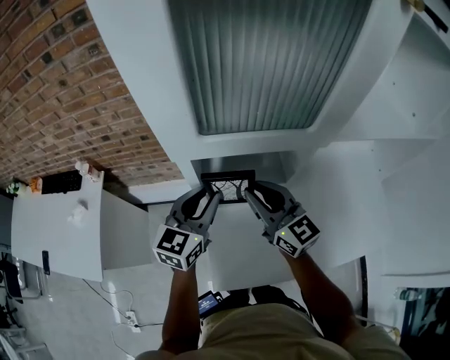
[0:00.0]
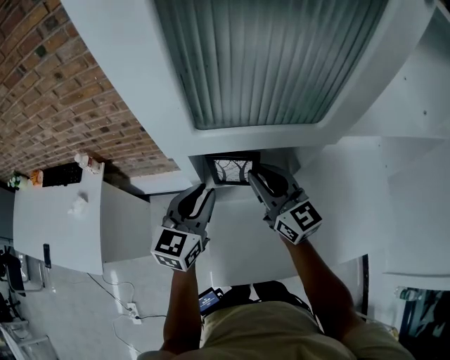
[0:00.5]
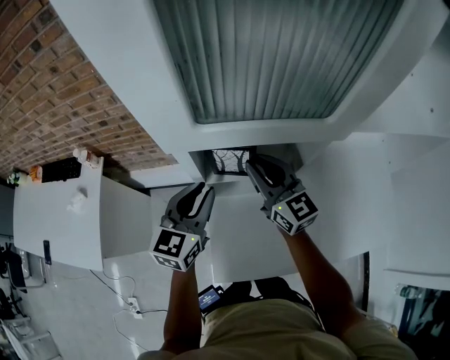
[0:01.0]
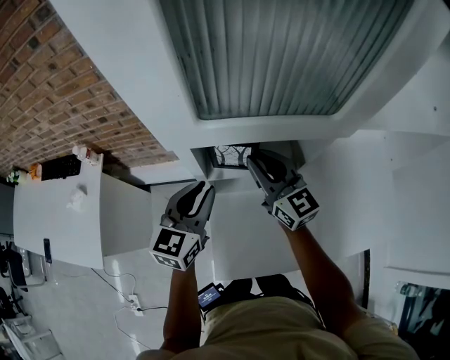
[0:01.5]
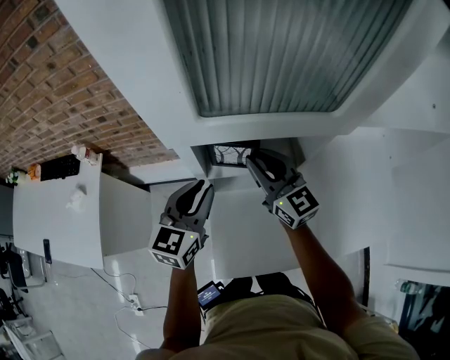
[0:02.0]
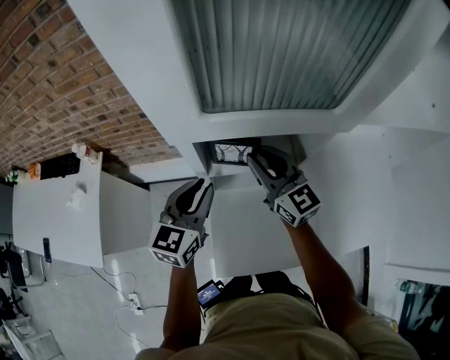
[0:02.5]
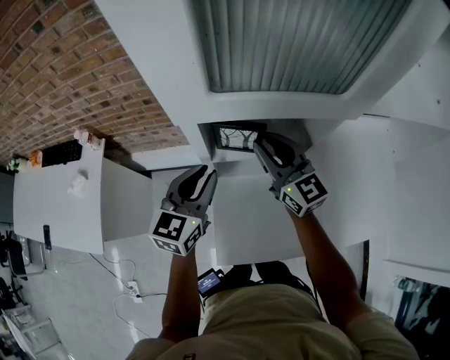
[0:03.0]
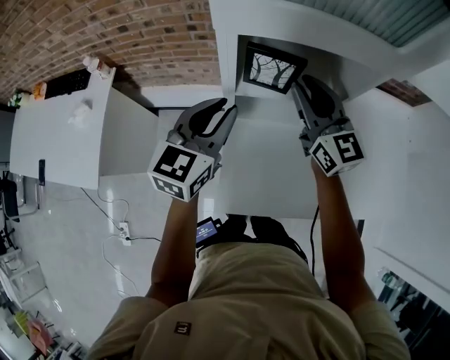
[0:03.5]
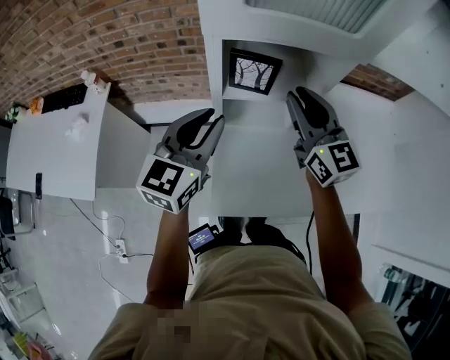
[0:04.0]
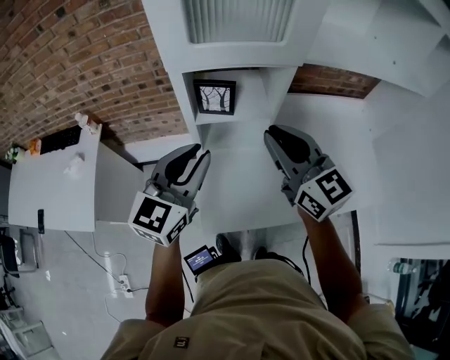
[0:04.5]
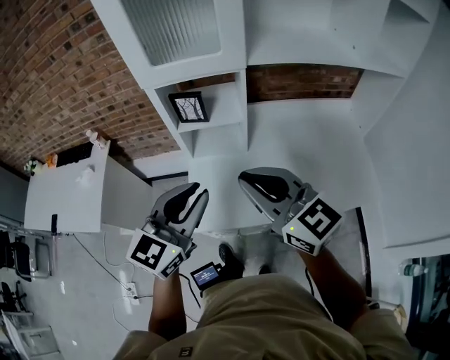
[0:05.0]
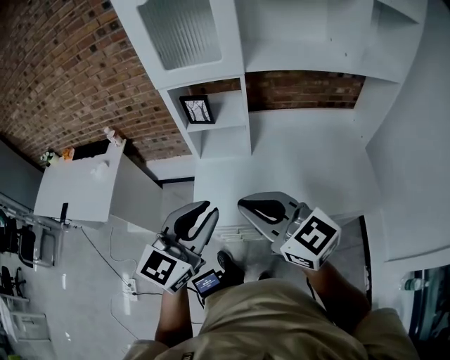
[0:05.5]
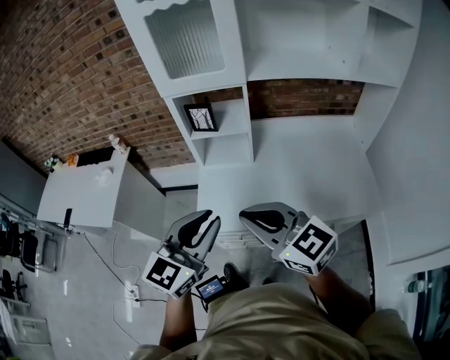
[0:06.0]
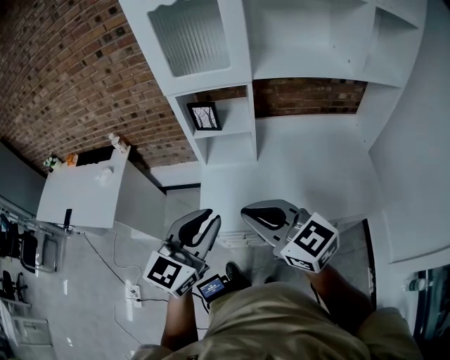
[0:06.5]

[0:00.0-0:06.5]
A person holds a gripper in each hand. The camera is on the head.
0:00.0 to 0:02.0: The right gripper is displaced forward by approximately 5 cm.
0:02.0 to 0:04.5: Both grippers move backward and upward, about 20 cm.
0:04.5 to 0:06.5: The grippers both shift backward by approximately 25 cm. The right gripper rotates roughly 20 degrees.

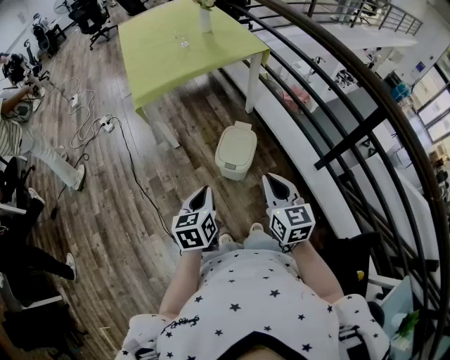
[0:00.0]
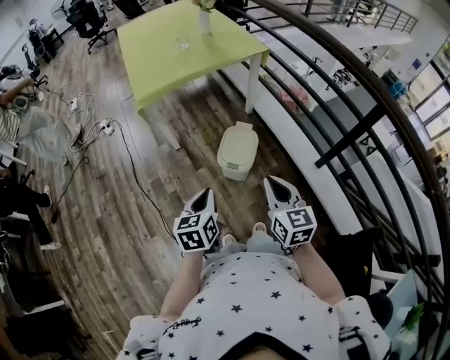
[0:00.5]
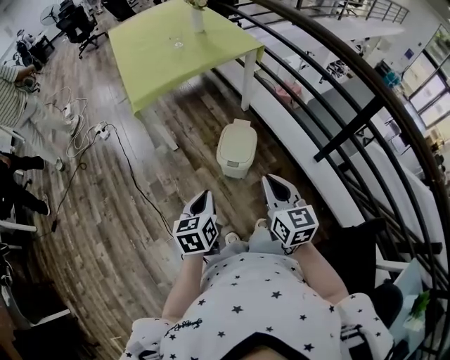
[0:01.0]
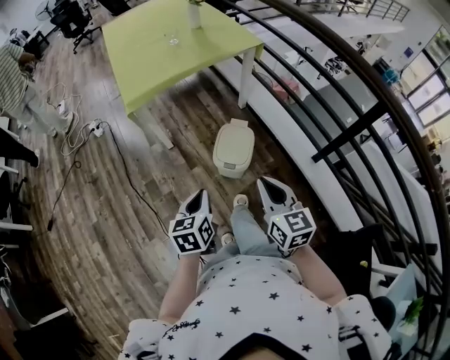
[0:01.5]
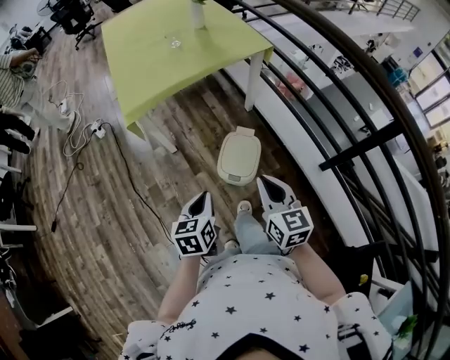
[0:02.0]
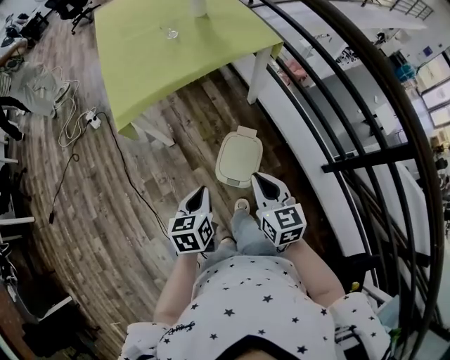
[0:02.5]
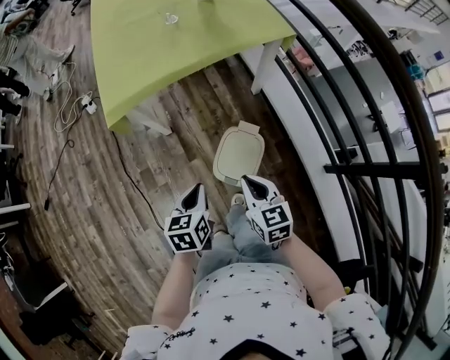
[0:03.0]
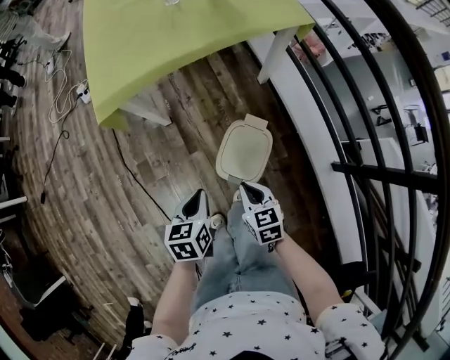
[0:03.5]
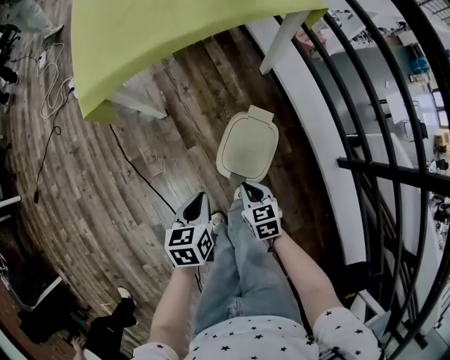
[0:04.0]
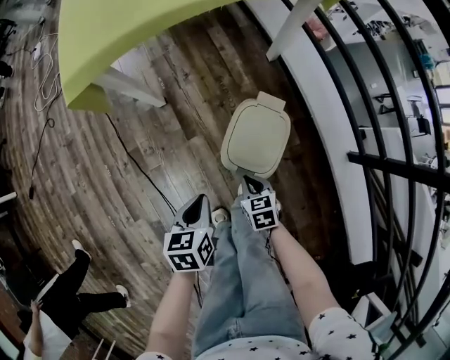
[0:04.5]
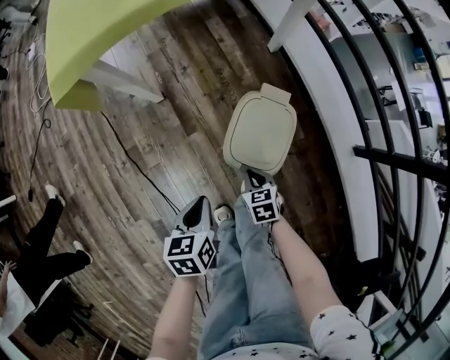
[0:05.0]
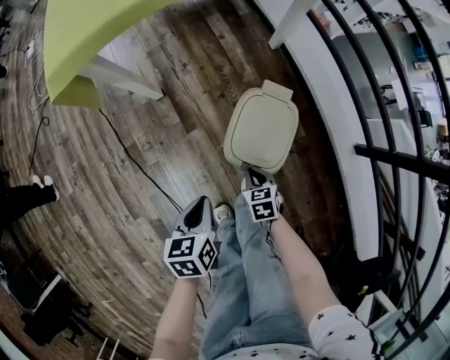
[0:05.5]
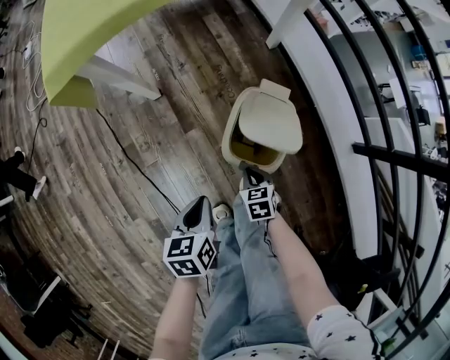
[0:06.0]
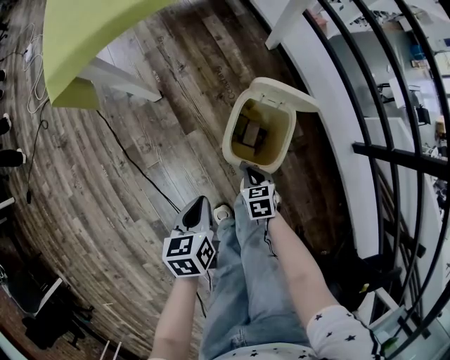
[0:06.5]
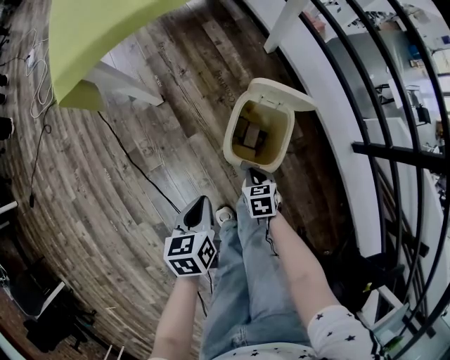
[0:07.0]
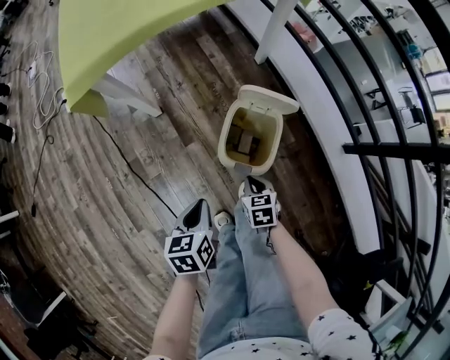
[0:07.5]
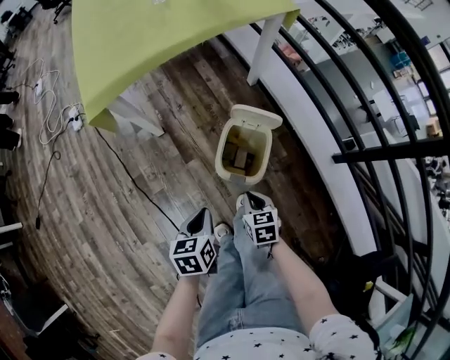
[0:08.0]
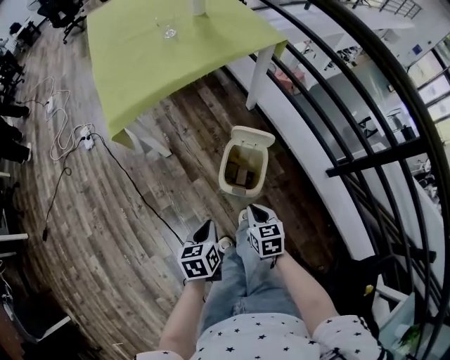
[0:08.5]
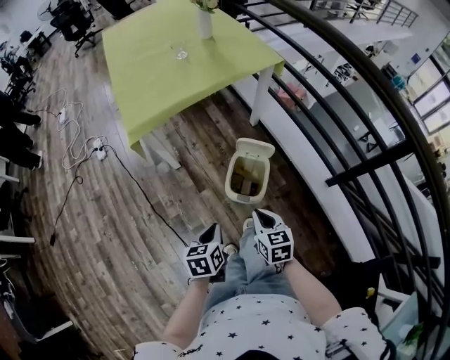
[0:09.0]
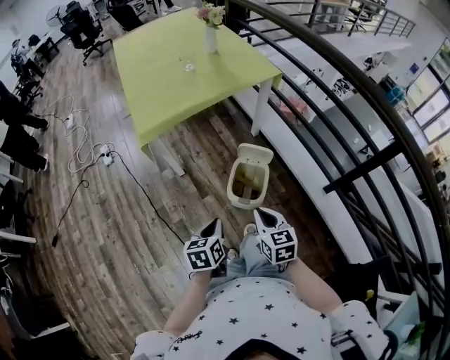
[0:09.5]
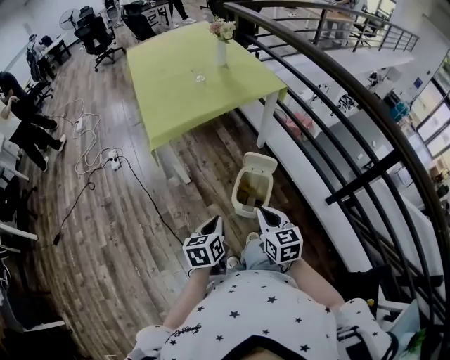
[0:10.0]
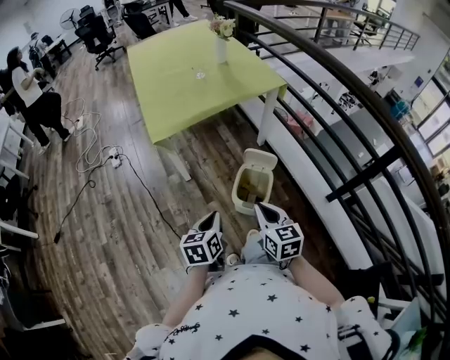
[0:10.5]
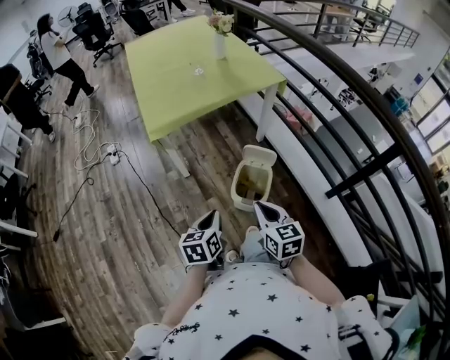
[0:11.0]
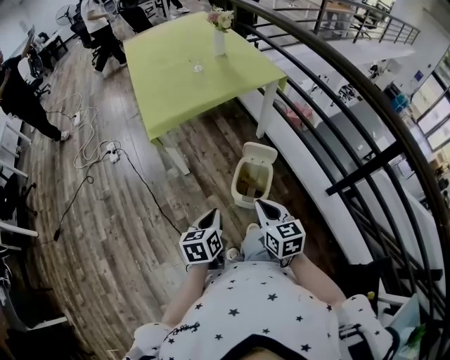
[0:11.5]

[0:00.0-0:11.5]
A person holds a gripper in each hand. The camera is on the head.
0:00.0 to 0:02.0: Both grippers travel together forward, some 10 cm.
0:02.0 to 0:04.0: The right gripper goes about 35 cm downward, and tilts its fingers roughly 30 degrees downward; the left gripper travels downward and forward by about 25 cm.
0:04.0 to 0:06.0: The left gripper goes approximately 10 cm downward. The right gripper moves downward, roughly 20 cm.
0:06.0 to 0:07.5: The two grippers go some 10 cm upward.
0:07.5 to 0:09.5: The left gripper heads upward, covering approximately 25 cm, while the right gripper moves upward, some 40 cm, and turns by approximately 20 degrees.
0:09.5 to 0:11.5: The right gripper shifts by some 5 cm.

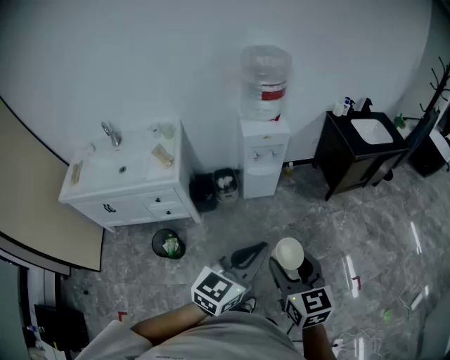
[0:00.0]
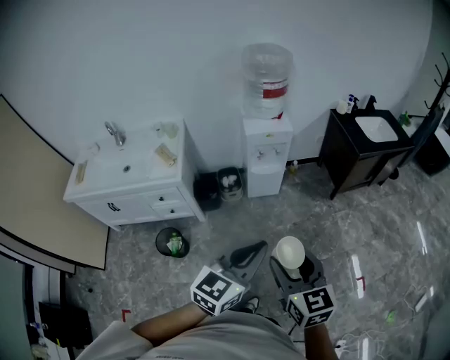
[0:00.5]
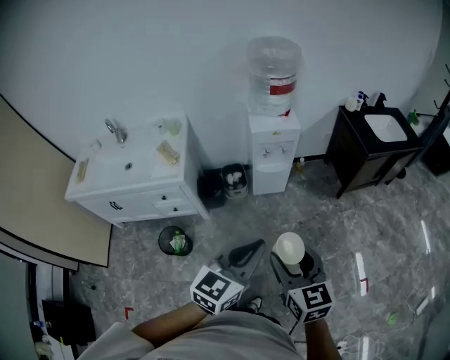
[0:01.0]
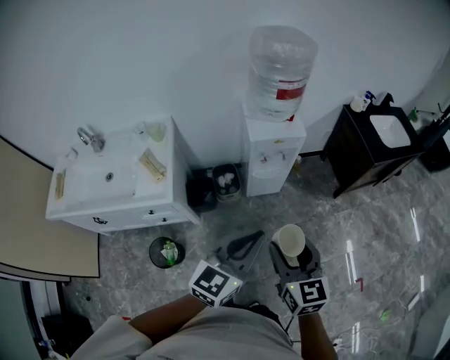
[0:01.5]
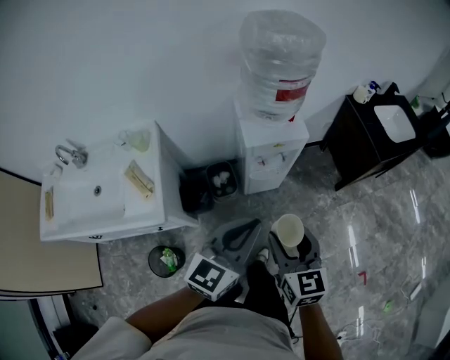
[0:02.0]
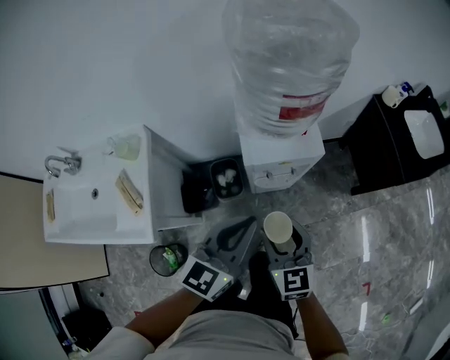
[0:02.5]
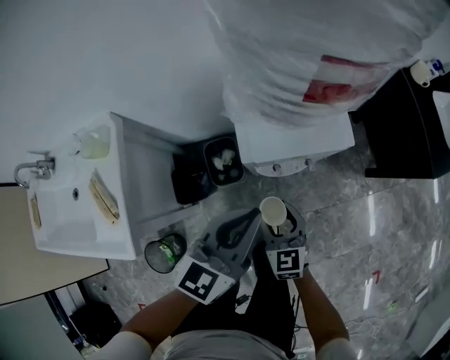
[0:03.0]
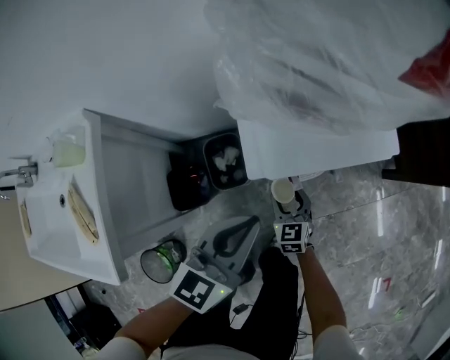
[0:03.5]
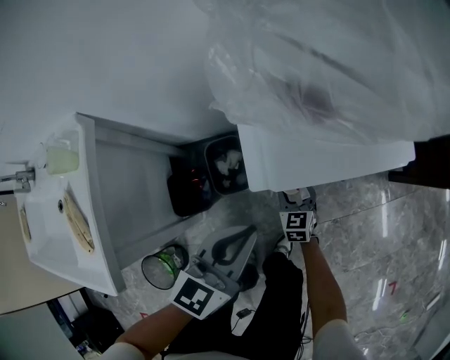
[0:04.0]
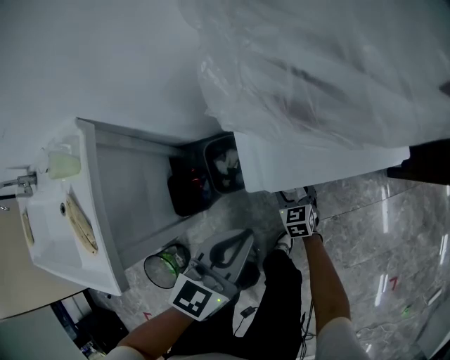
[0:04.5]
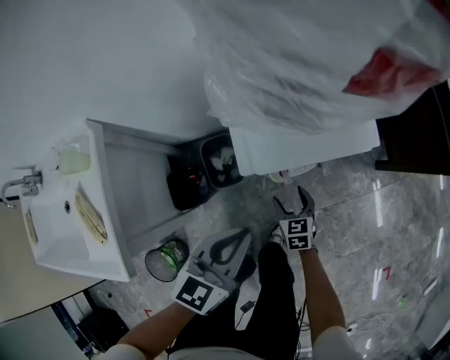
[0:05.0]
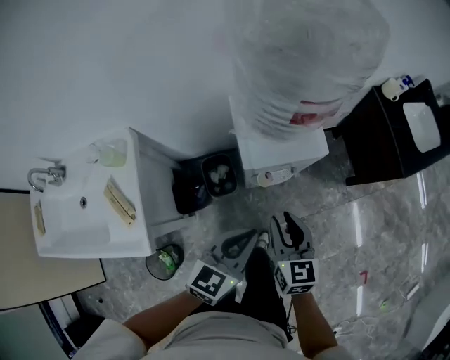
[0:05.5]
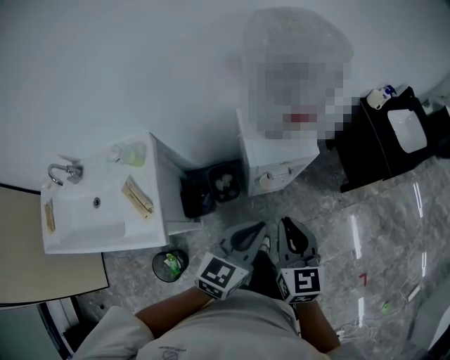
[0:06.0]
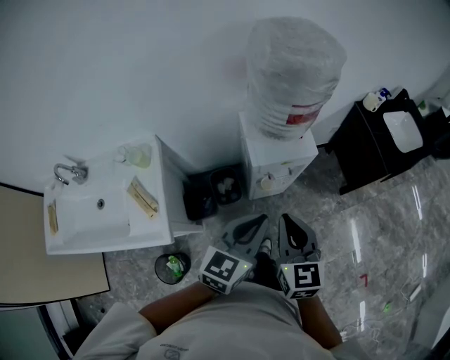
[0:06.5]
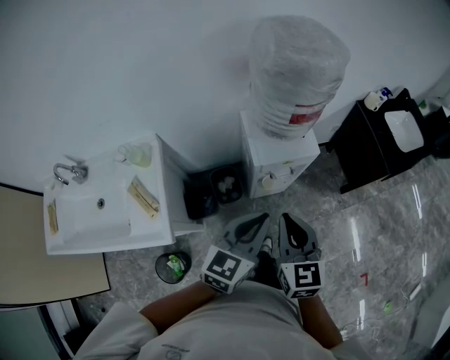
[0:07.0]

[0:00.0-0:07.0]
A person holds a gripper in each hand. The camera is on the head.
0:00.0 to 0:02.0: Both grippers move forward, roughly 35 cm.
0:02.0 to 0:03.5: The grippers both shift downward and forward by about 50 cm.
0:03.5 to 0:05.0: The right gripper moves approximately 5 cm downward and comes back.
0:05.0 to 0:07.0: The right gripper is displaced upward by roughly 50 cm, swivels approximately 30 degrees, and closes up, while the left gripper is displaced upward by about 30 cm.

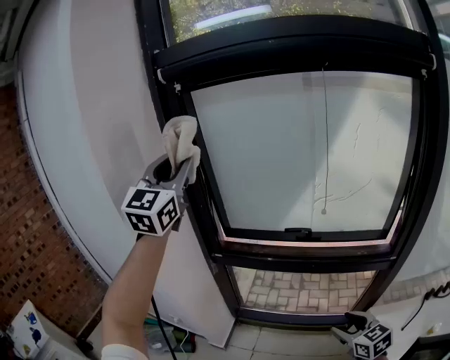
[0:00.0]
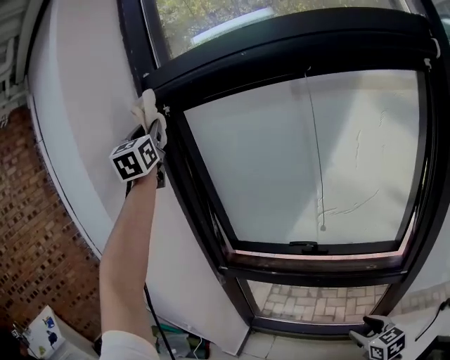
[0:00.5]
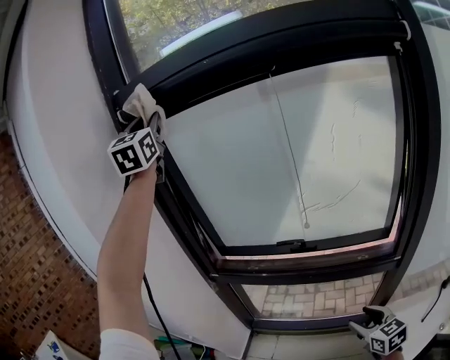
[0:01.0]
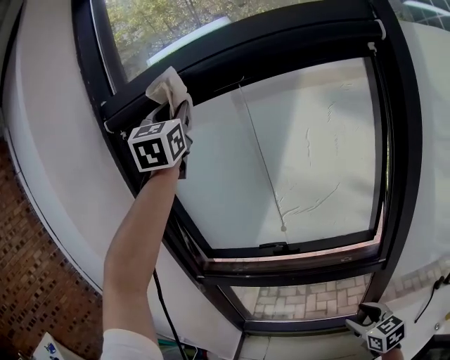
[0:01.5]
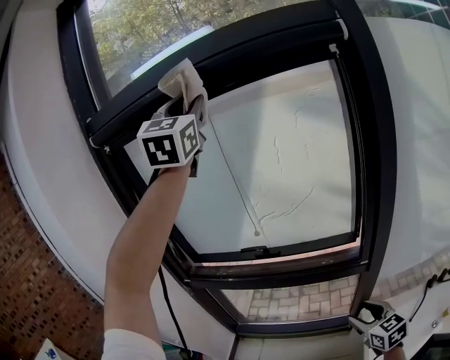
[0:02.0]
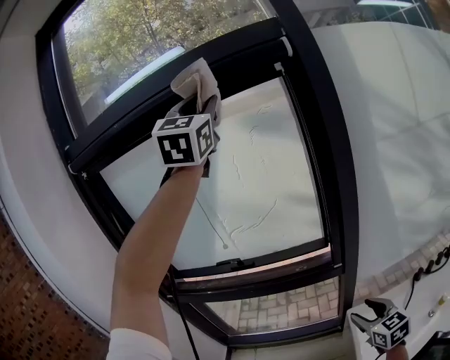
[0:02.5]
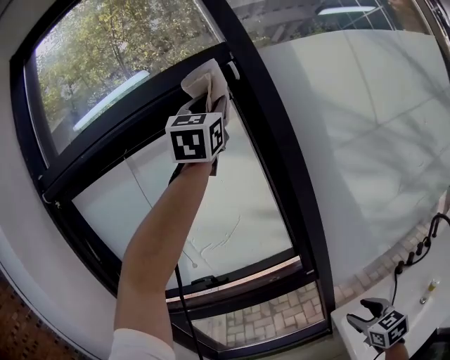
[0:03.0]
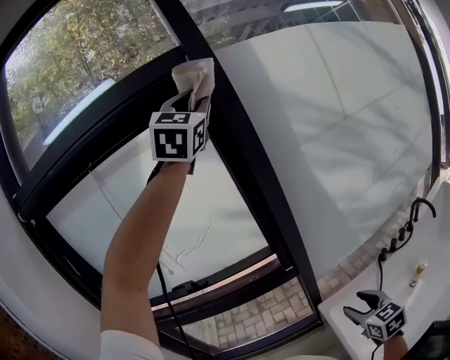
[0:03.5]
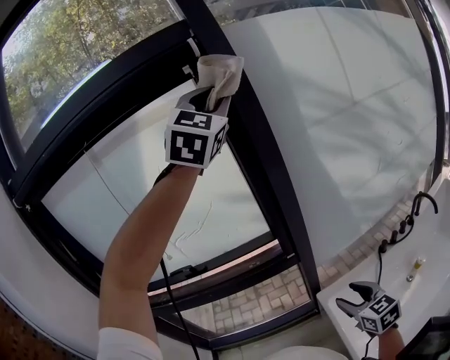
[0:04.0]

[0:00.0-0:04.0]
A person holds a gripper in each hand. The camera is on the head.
0:00.0 to 0:02.0: The left gripper shifts some 40 cm to the right and upward. Meanwhile the right gripper is displaced to the right by roughly 20 cm.
0:02.0 to 0:04.0: The right gripper moves to the right, approximately 15 cm, while the left gripper heads to the right, covering roughly 35 cm, and swivels about 30 degrees.
